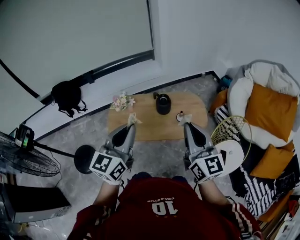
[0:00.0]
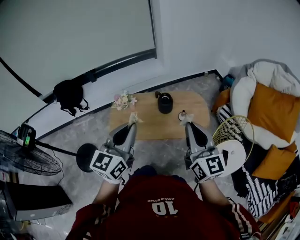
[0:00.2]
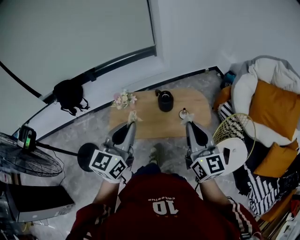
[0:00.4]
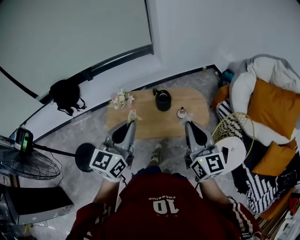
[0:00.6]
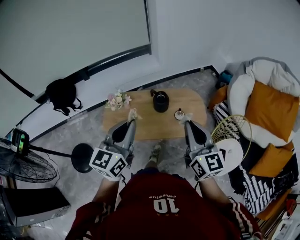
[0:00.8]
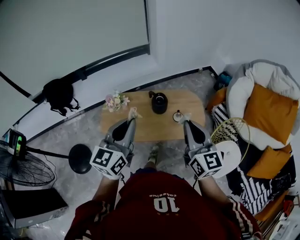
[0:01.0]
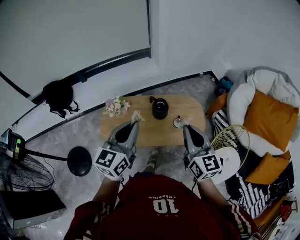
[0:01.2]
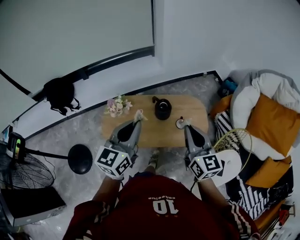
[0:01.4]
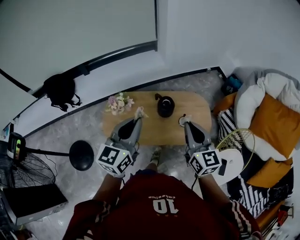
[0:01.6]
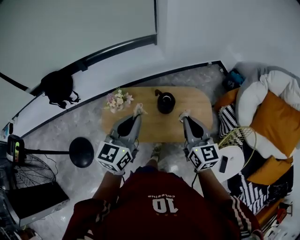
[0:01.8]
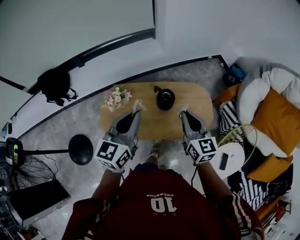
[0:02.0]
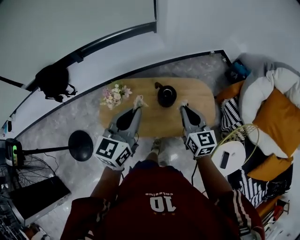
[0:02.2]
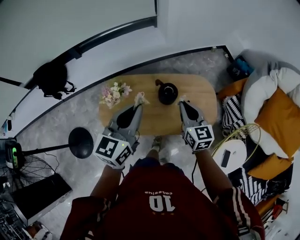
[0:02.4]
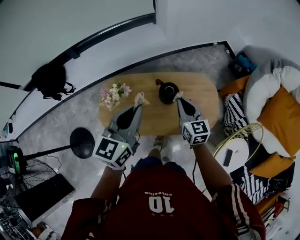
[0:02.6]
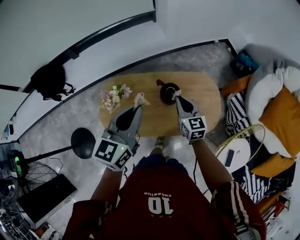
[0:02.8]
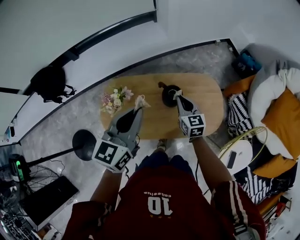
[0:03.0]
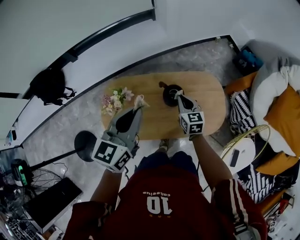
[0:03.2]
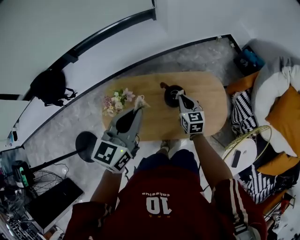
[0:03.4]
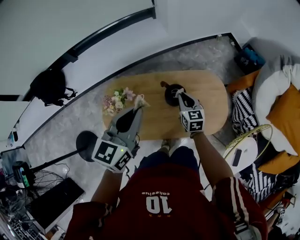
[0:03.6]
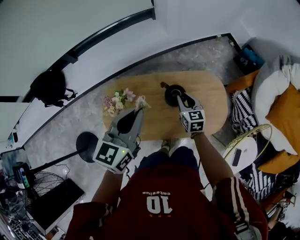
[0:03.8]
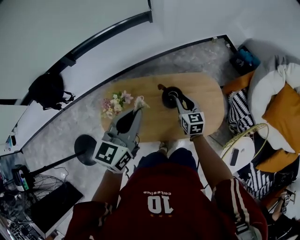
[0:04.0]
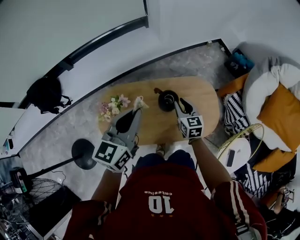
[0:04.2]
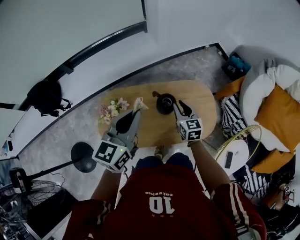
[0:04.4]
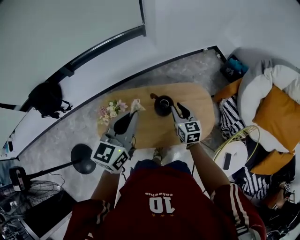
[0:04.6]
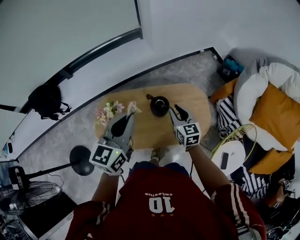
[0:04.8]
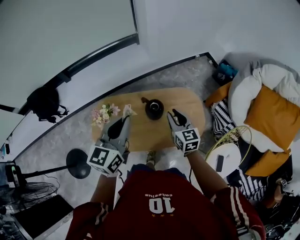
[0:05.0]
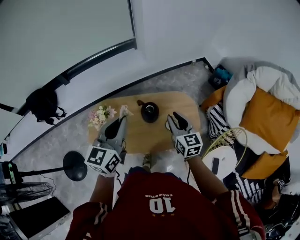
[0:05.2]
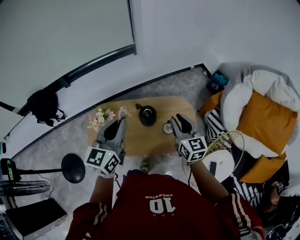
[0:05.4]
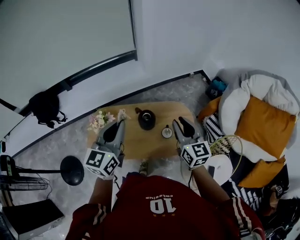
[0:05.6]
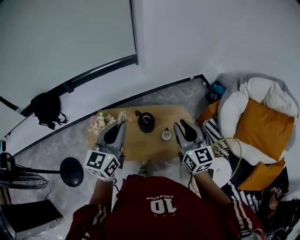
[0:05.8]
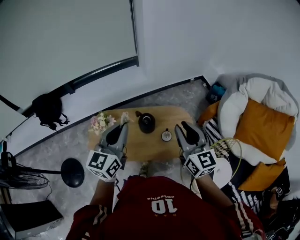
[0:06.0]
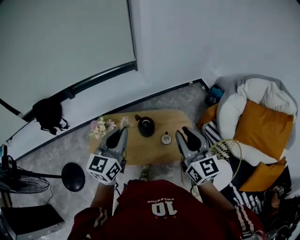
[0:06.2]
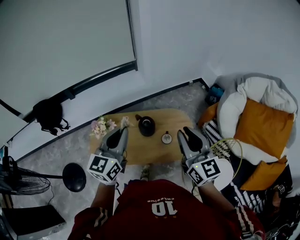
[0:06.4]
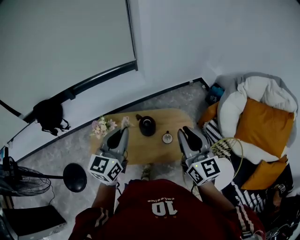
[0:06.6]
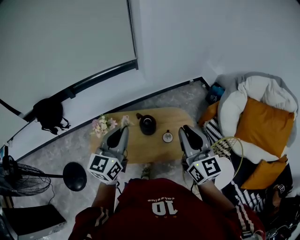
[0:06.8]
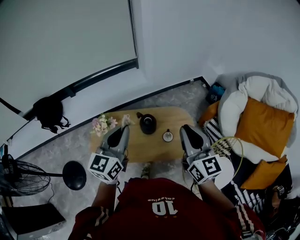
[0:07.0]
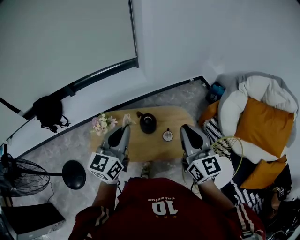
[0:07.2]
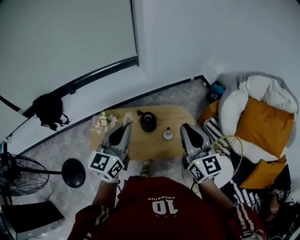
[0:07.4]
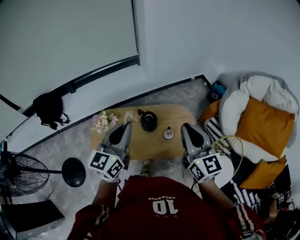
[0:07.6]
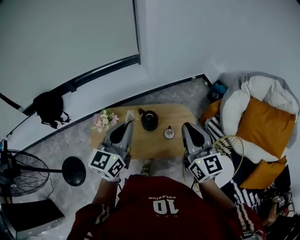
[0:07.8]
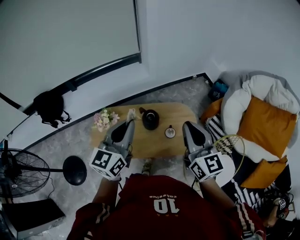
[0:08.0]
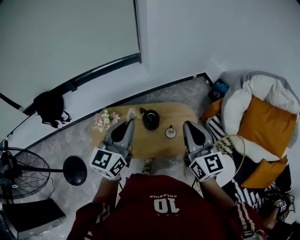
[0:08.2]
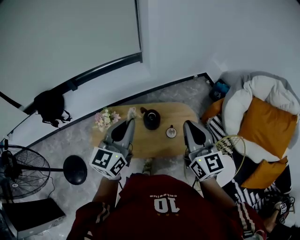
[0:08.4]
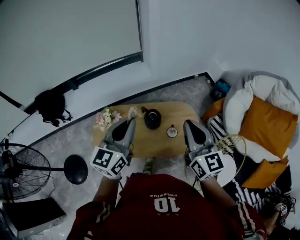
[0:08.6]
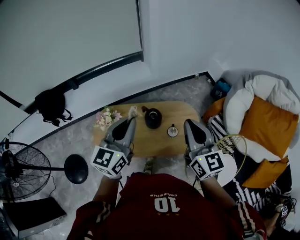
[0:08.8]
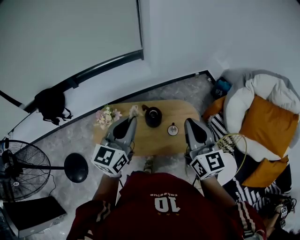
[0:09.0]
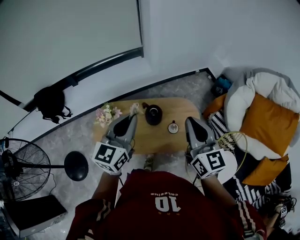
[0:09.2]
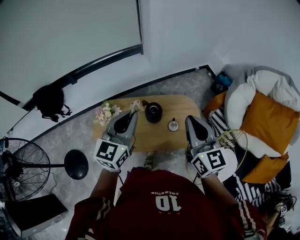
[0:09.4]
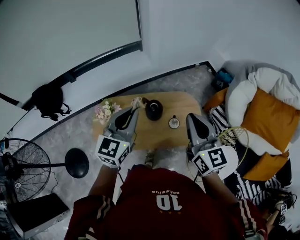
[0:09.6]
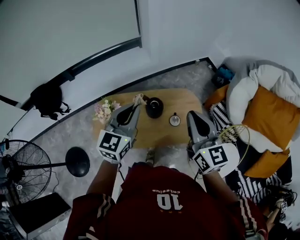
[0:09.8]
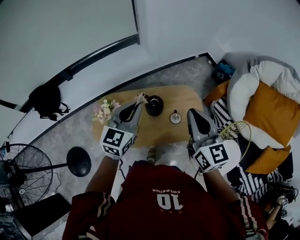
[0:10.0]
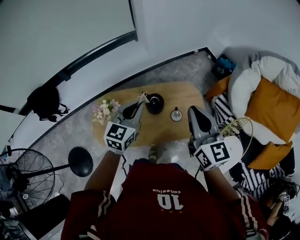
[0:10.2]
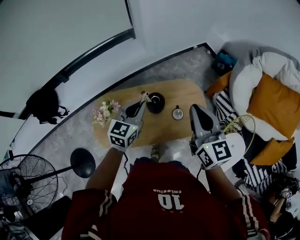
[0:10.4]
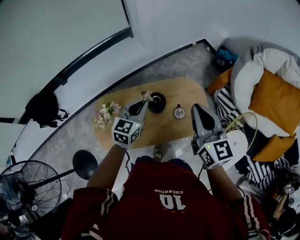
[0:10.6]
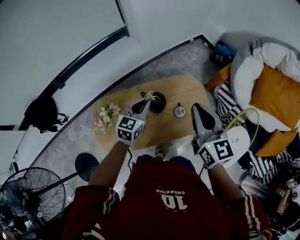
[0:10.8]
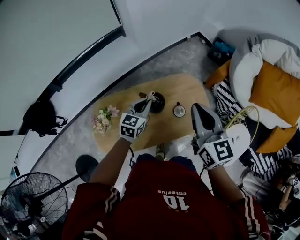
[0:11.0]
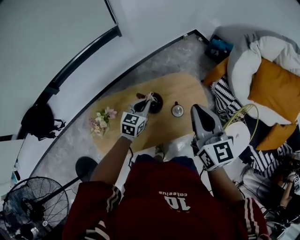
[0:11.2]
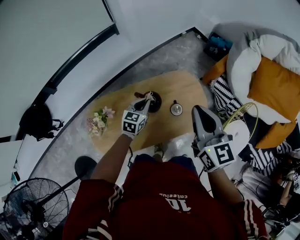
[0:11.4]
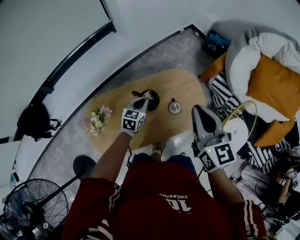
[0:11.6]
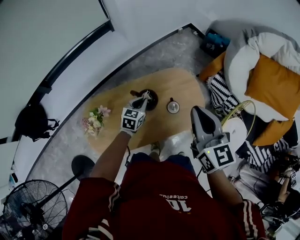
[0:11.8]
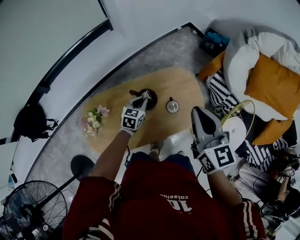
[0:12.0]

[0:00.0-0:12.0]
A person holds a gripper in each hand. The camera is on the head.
0:00.0 to 0:01.6: The right gripper goes roughly 20 cm forward and downward, while the left gripper shifts approximately 15 cm forward.
0:01.6 to 0:03.0: The right gripper moves downward and forward, about 35 cm. Meanwhile the left gripper travels forward and downward by roughly 15 cm.
0:03.0 to 0:04.4: The right gripper opens.
0:04.4 to 0:06.0: The left gripper moves backward, upward and to the right, approximately 15 cm. Meanwhile the right gripper shifts roughly 35 cm upward, backward and to the right, and swivels roughly 30 degrees.
0:06.0 to 0:07.6: The right gripper closes its fingers.
0:07.6 to 0:09.0: The grippers make only small movements.
0:09.0 to 0:10.4: The left gripper is displaced downward and forward by approximately 20 cm, while the right gripper goes about 10 cm forward and downward.
0:10.4 to 0:12.0: The right gripper moves downward, about 5 cm; the left gripper is displaced downward by about 25 cm, and turns by about 20 degrees.

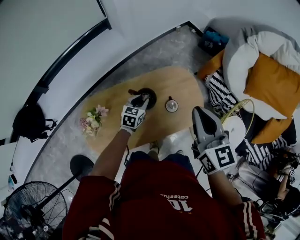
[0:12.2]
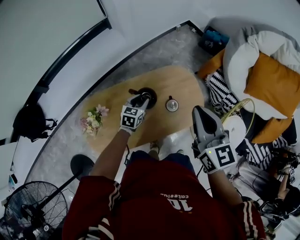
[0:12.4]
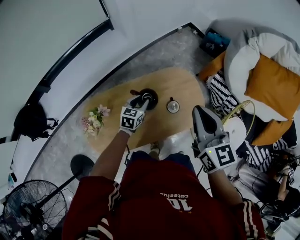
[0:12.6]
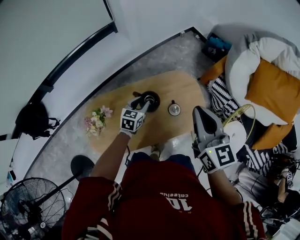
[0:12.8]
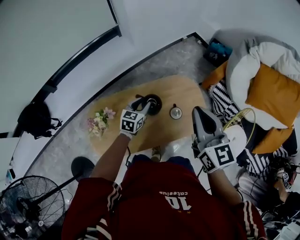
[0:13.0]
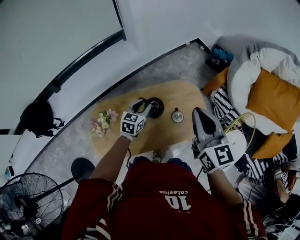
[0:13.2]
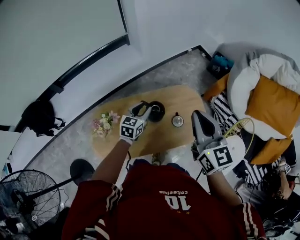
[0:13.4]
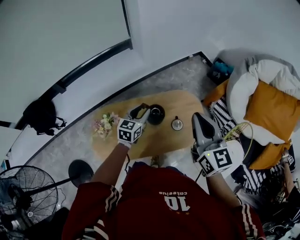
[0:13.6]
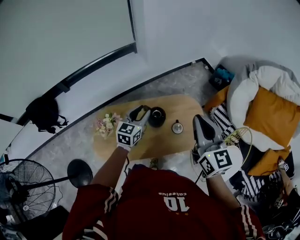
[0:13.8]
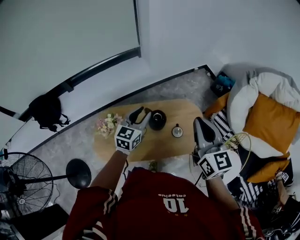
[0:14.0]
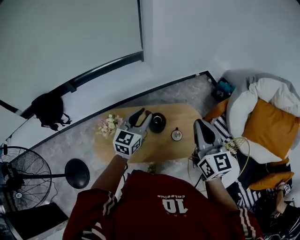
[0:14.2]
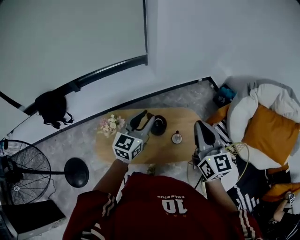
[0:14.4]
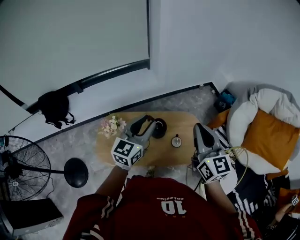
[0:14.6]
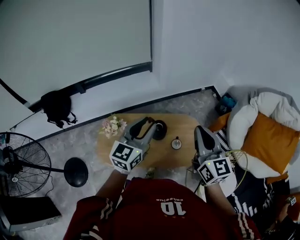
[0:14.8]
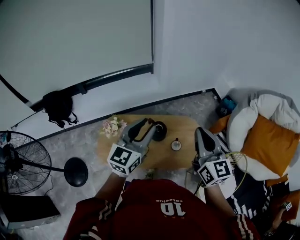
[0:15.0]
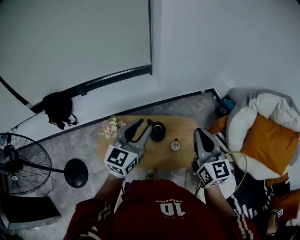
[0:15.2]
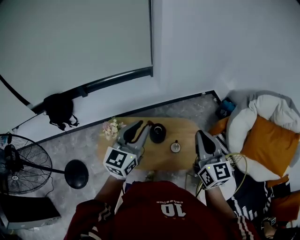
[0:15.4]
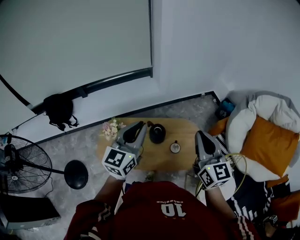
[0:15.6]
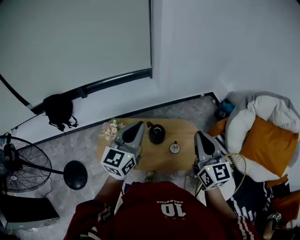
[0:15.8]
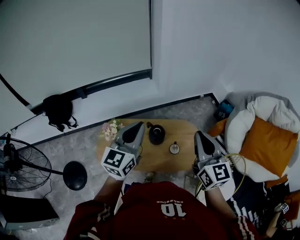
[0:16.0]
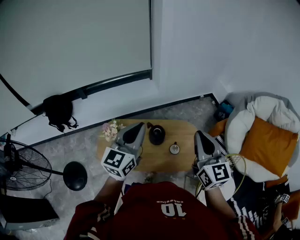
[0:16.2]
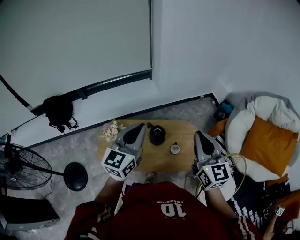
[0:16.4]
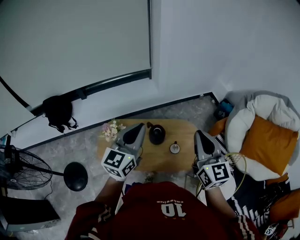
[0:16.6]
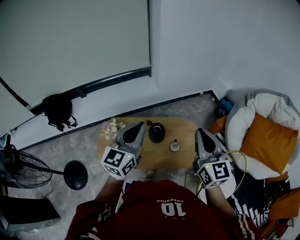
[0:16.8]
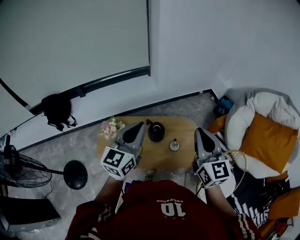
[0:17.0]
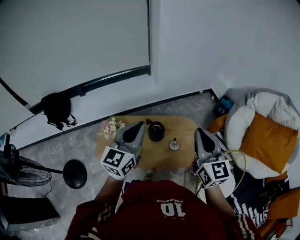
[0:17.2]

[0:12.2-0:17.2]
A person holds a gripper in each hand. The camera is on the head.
0:12.2 to 0:13.8: The left gripper moves upward, approximately 20 cm, and turns by approximately 20 degrees; the right gripper moves upward, about 10 cm.
0:13.8 to 0:15.6: The right gripper is displaced upward and backward by approximately 10 cm; the left gripper shifts approximately 25 cm upward and backward, turns by some 20 degrees, and closes.
0:15.6 to 0:17.2: The grippers make only small movements.

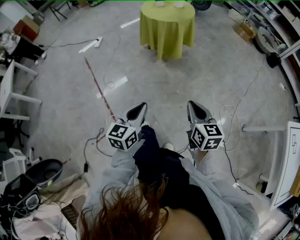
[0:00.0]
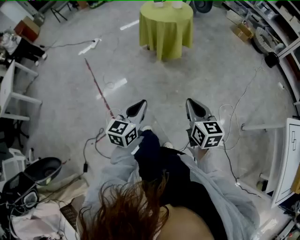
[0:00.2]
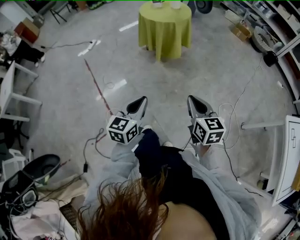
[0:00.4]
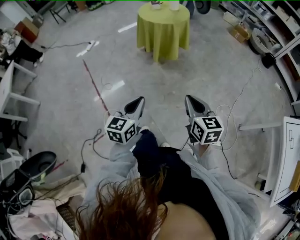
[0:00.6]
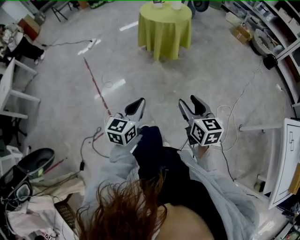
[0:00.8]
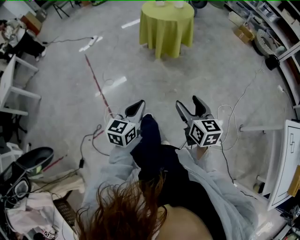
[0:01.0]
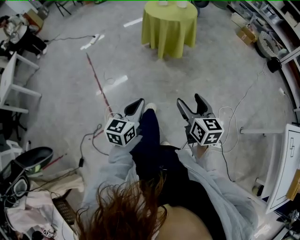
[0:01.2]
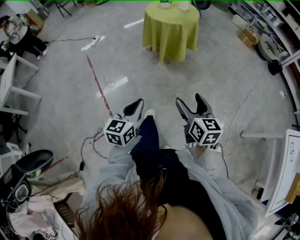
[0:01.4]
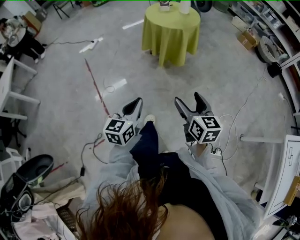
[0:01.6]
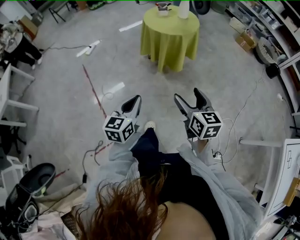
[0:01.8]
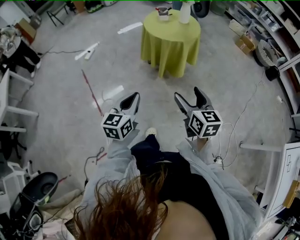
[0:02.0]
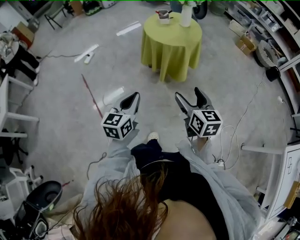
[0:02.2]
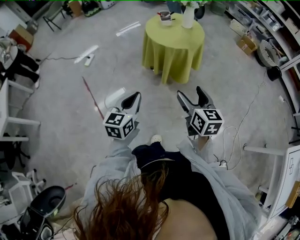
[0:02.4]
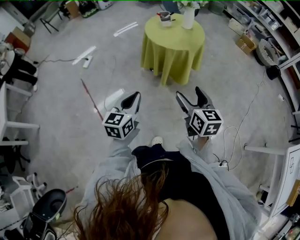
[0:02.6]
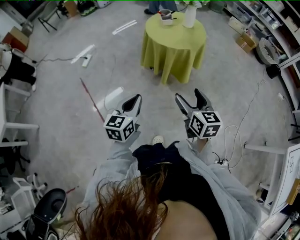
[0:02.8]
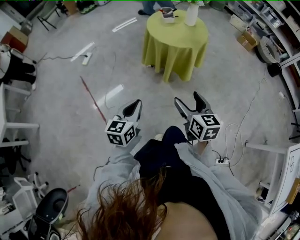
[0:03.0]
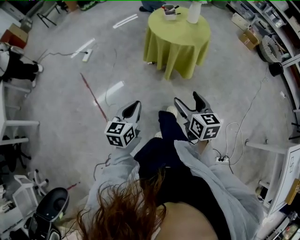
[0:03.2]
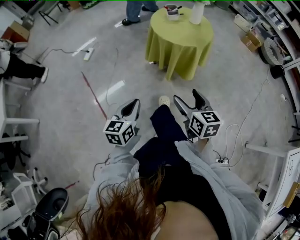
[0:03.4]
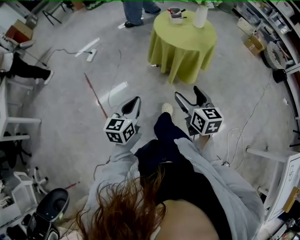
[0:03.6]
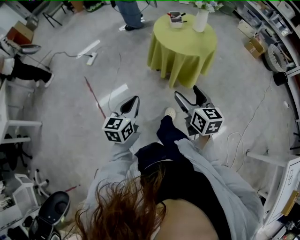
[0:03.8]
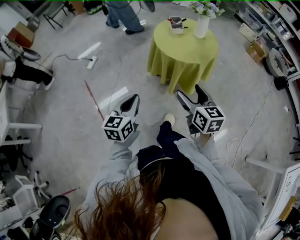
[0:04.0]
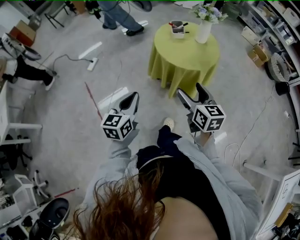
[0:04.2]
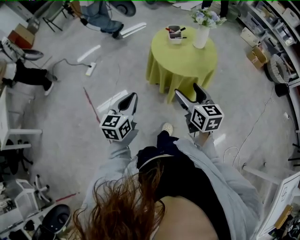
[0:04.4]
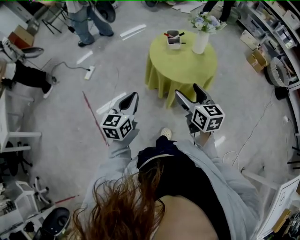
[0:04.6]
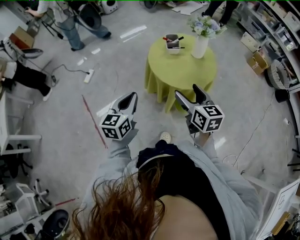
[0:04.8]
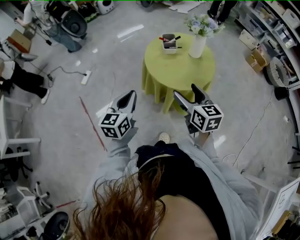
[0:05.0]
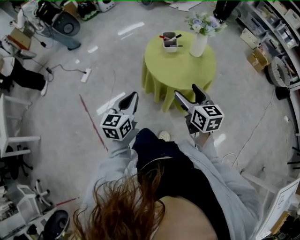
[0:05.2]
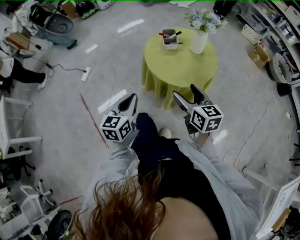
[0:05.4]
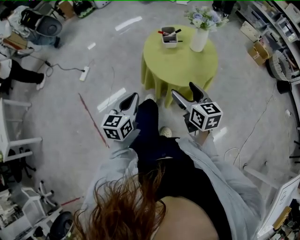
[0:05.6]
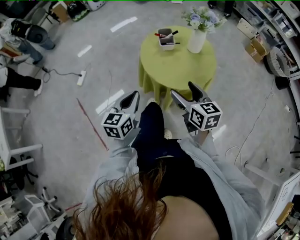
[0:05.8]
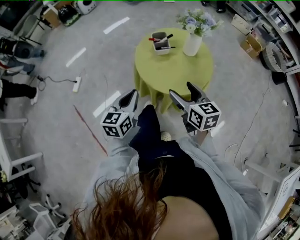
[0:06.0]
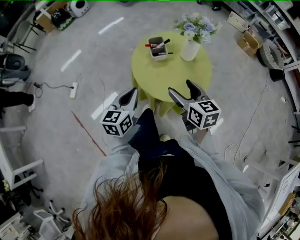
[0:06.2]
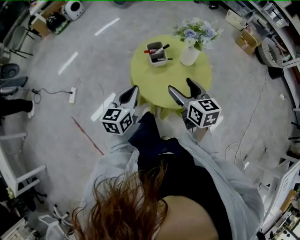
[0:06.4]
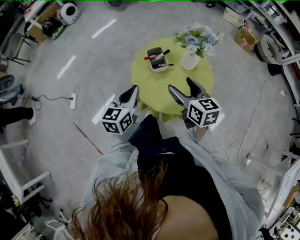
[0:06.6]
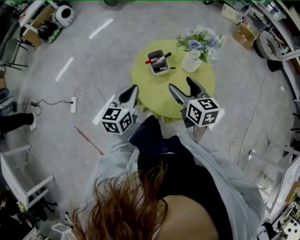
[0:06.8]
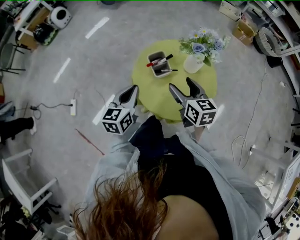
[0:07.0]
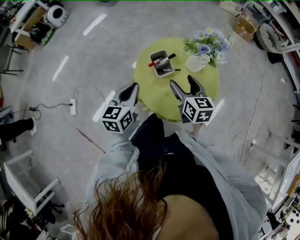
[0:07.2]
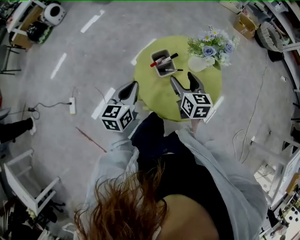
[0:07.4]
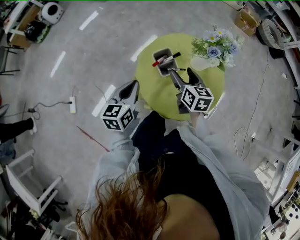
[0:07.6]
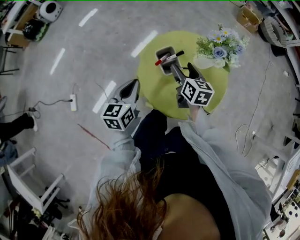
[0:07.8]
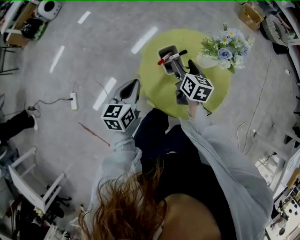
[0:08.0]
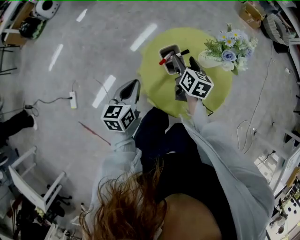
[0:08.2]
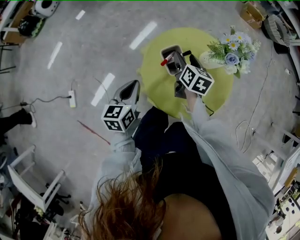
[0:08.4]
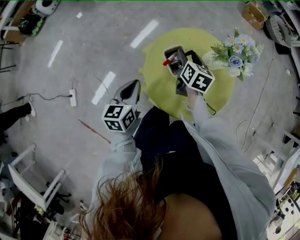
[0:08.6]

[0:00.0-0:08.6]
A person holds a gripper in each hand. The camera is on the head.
0:00.0 to 0:01.4: The right gripper opens its fingers.
0:01.4 to 0:02.8: Both grippers move forward and to the left, roughly 30 cm.
0:02.8 to 0:04.4: The grippers both shift forward by some 20 cm.
0:04.4 to 0:05.8: Both grippers move forward, some 15 cm.
0:05.8 to 0:07.2: Both grippers move forward, about 25 cm. The right gripper rotates approximately 20 degrees.
0:07.2 to 0:08.6: The left gripper travels downward and to the left by some 10 cm. Meanwhile the right gripper moves forward and downward, approximately 15 cm, and swivels approximately 20 degrees.
